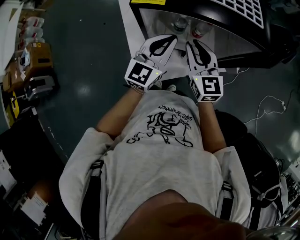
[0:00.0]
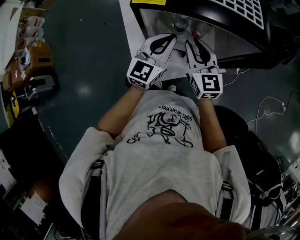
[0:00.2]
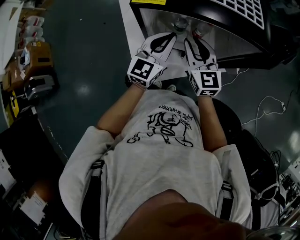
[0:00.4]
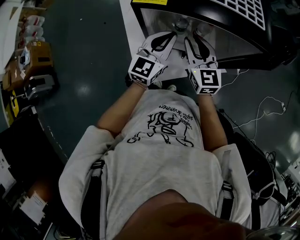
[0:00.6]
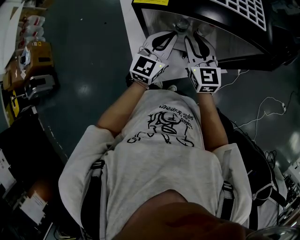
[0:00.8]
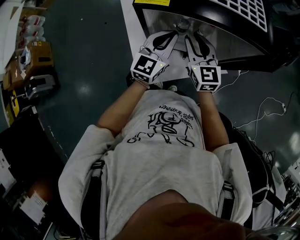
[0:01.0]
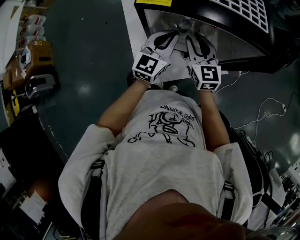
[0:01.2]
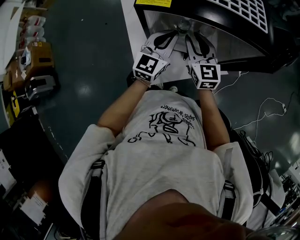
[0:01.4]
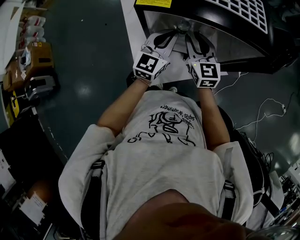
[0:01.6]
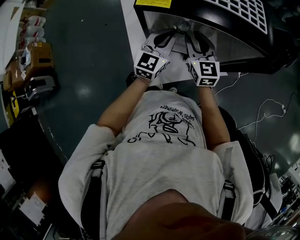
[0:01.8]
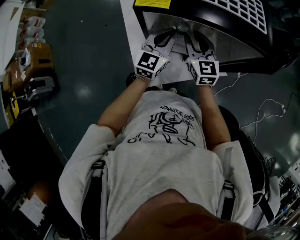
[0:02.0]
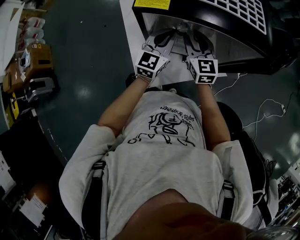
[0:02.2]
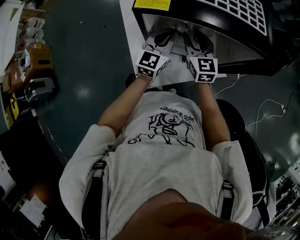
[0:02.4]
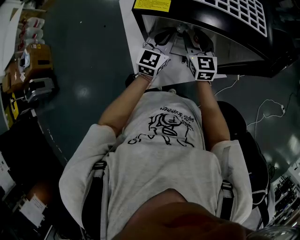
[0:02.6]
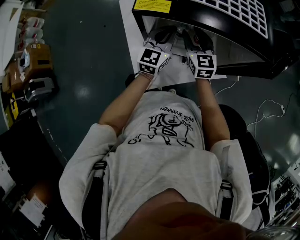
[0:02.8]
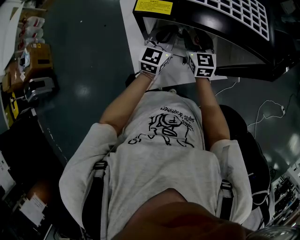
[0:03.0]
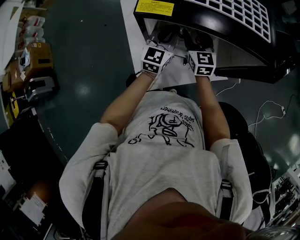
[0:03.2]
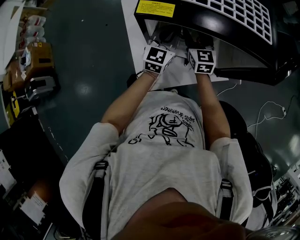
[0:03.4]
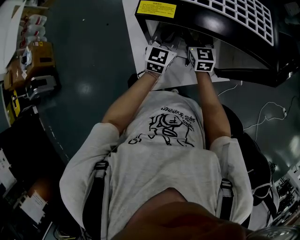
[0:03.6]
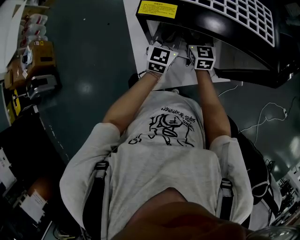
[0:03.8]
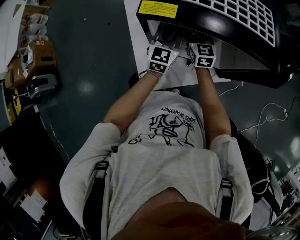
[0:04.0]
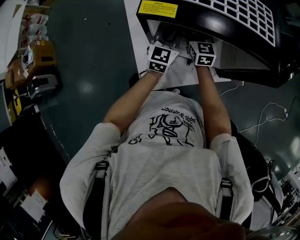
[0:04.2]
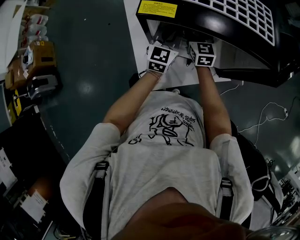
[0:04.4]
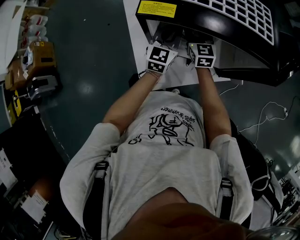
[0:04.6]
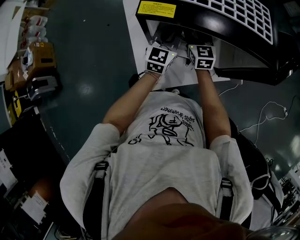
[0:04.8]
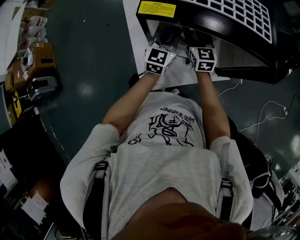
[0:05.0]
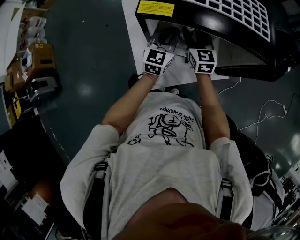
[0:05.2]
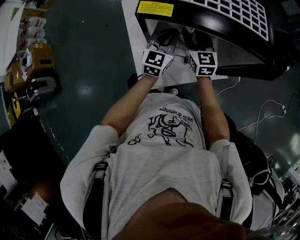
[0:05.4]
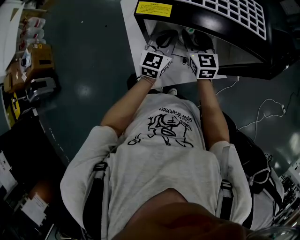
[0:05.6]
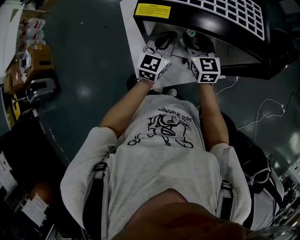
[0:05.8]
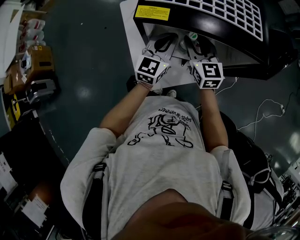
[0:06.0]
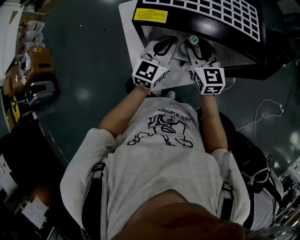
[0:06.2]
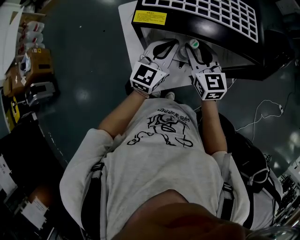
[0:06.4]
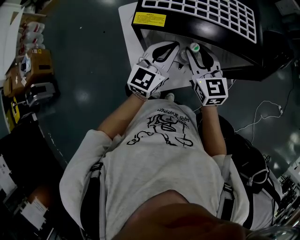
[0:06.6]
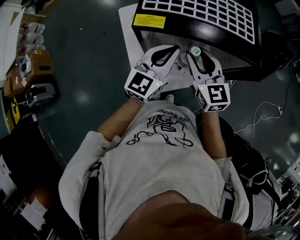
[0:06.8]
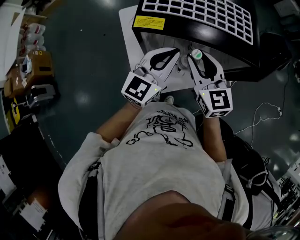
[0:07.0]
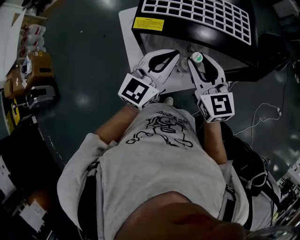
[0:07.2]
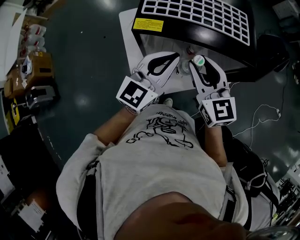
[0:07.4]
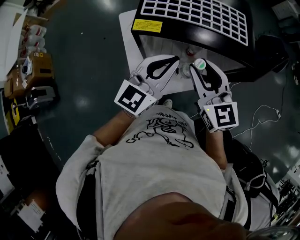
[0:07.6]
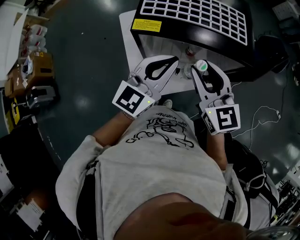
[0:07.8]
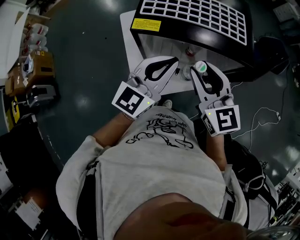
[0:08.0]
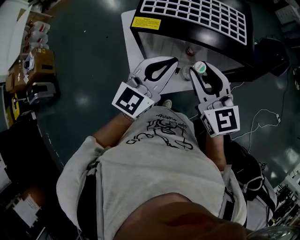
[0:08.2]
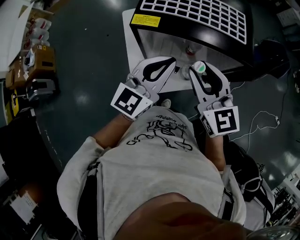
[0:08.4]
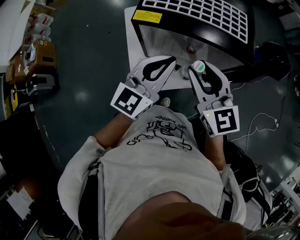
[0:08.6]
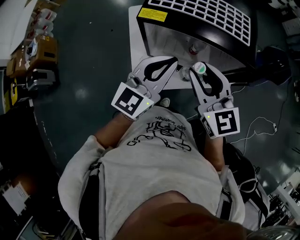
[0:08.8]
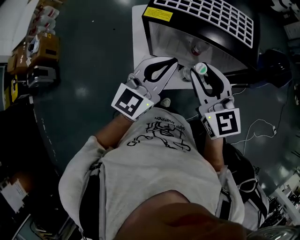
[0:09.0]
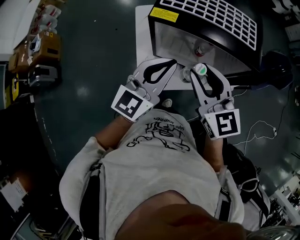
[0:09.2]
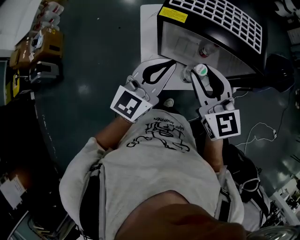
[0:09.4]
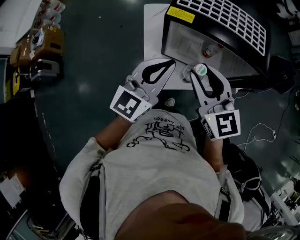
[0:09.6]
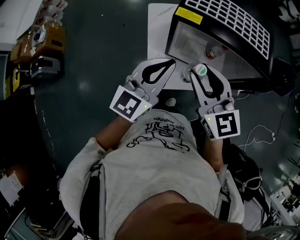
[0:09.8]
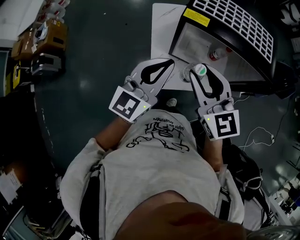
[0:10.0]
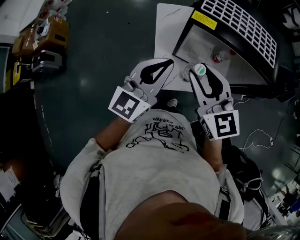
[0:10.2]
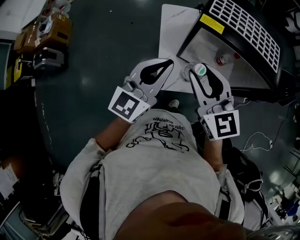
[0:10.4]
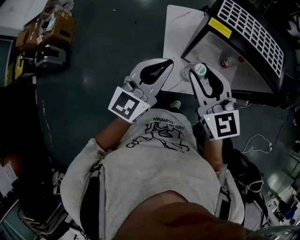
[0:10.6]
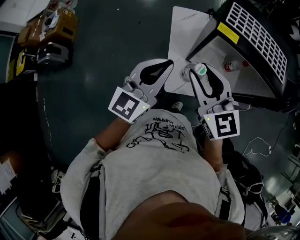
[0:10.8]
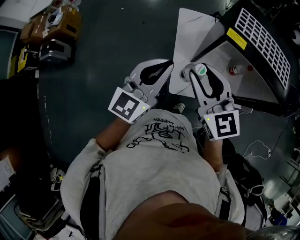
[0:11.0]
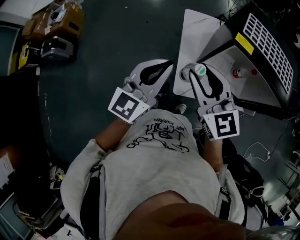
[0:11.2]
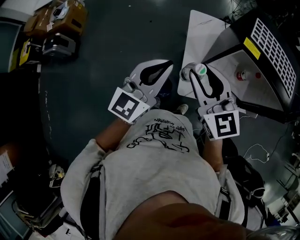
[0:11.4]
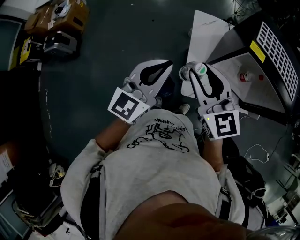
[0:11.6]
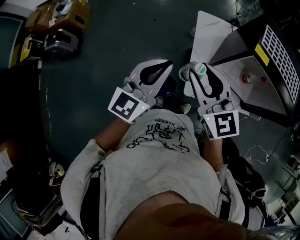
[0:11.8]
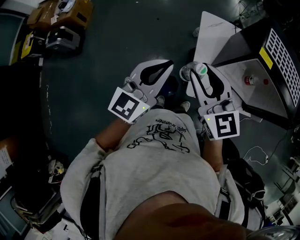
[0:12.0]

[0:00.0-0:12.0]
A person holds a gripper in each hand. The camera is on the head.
0:00.0 to 0:01.6: The right gripper shifts roughly 5 cm forward. The left gripper moves about 5 cm.
0:01.6 to 0:03.0: The grippers both shift forward by about 5 cm.
0:03.0 to 0:04.4: The right gripper shifts by approximately 5 cm.
0:04.4 to 0:06.0: The right gripper shifts roughly 10 cm backward and upward, while the left gripper goes some 5 cm upward.
0:06.0 to 0:07.6: Both grippers travel together upward and backward, roughly 15 cm.
0:07.6 to 0:09.0: The grippers make only small movements.
0:09.0 to 0:10.4: The grippers both shift to the left by roughly 15 cm.
0:10.4 to 0:12.0: Both grippers move to the left, about 20 cm.

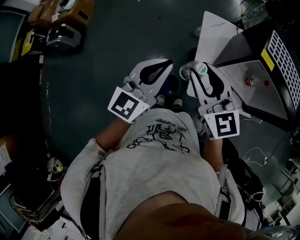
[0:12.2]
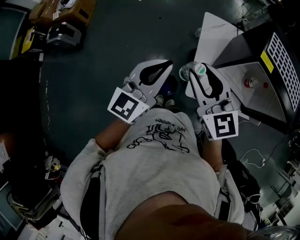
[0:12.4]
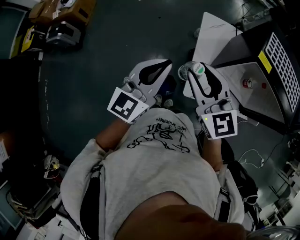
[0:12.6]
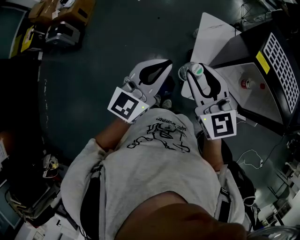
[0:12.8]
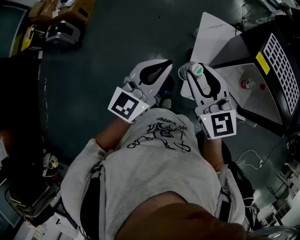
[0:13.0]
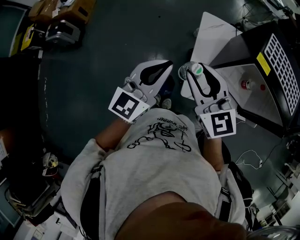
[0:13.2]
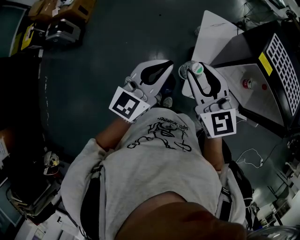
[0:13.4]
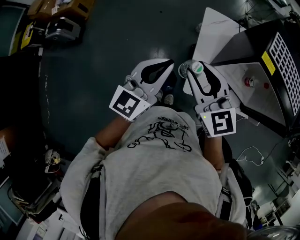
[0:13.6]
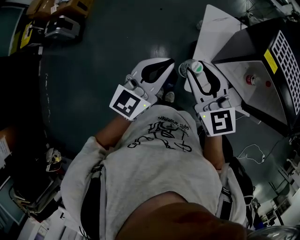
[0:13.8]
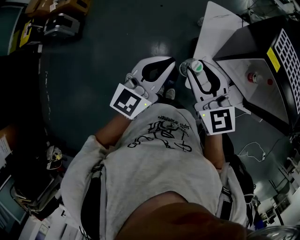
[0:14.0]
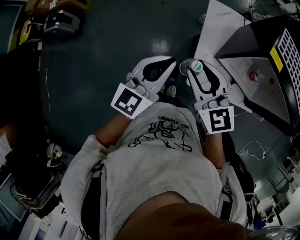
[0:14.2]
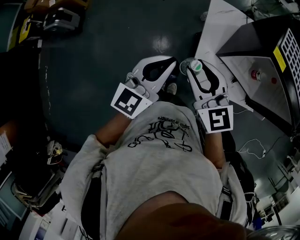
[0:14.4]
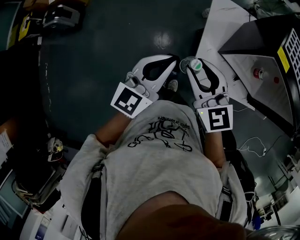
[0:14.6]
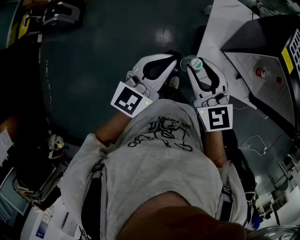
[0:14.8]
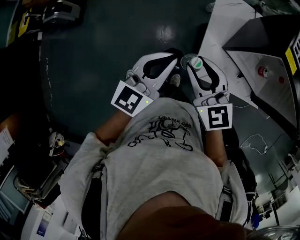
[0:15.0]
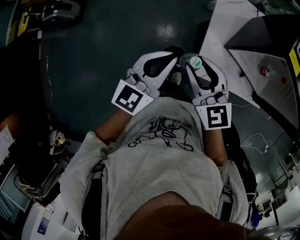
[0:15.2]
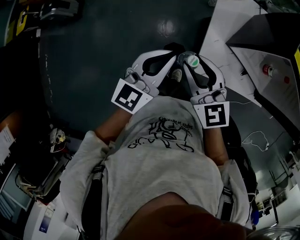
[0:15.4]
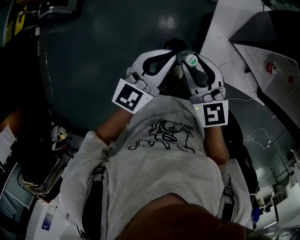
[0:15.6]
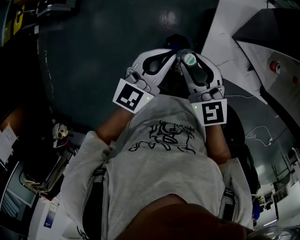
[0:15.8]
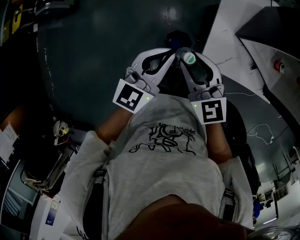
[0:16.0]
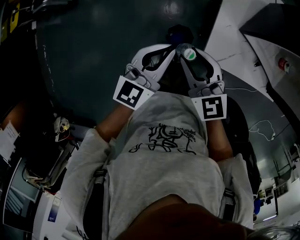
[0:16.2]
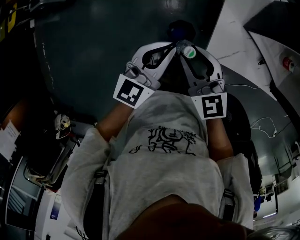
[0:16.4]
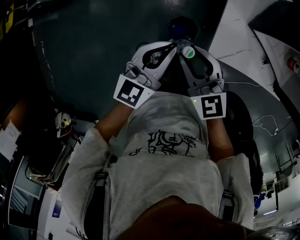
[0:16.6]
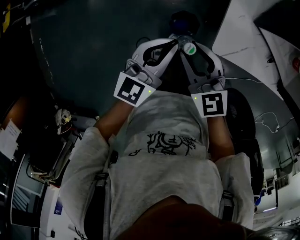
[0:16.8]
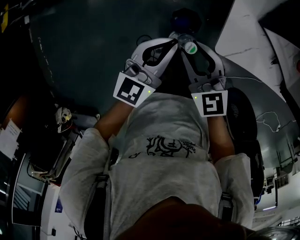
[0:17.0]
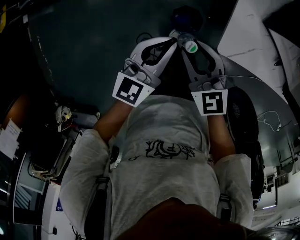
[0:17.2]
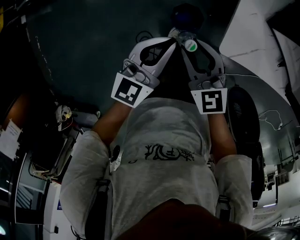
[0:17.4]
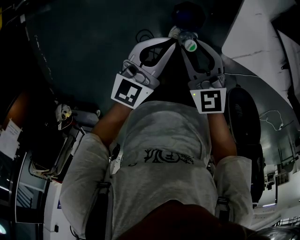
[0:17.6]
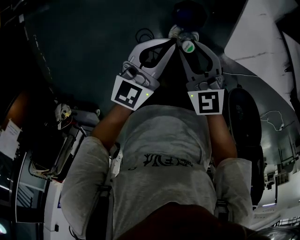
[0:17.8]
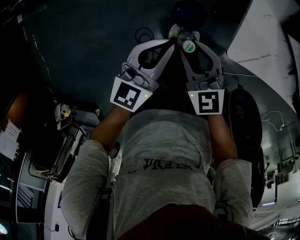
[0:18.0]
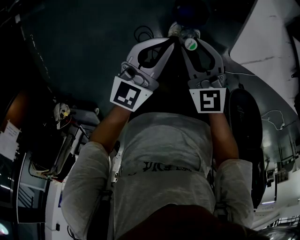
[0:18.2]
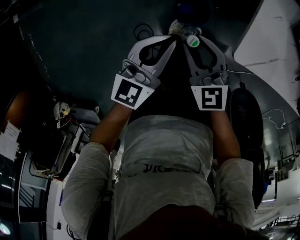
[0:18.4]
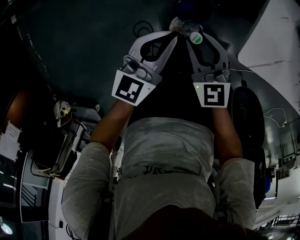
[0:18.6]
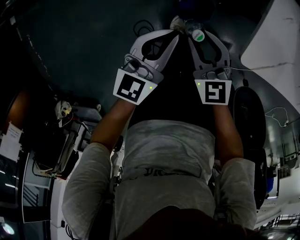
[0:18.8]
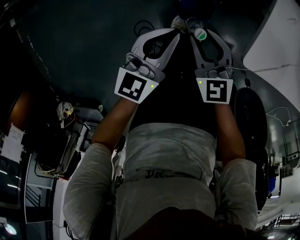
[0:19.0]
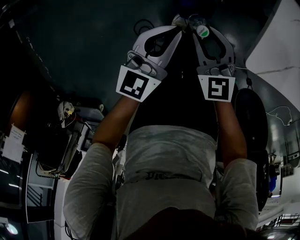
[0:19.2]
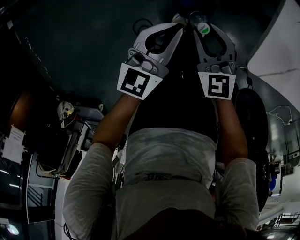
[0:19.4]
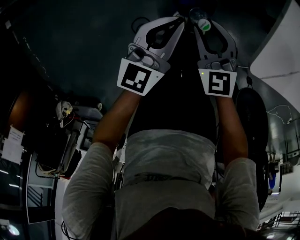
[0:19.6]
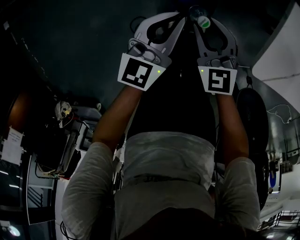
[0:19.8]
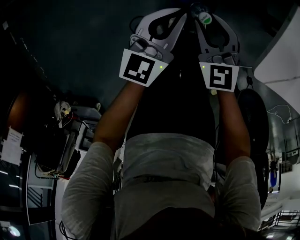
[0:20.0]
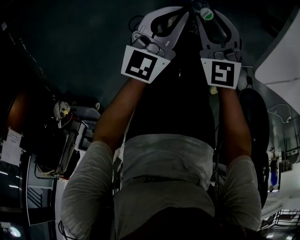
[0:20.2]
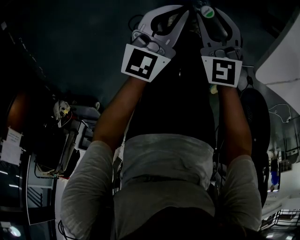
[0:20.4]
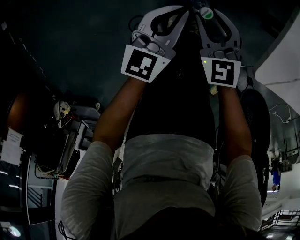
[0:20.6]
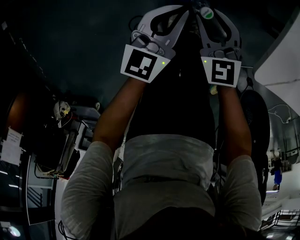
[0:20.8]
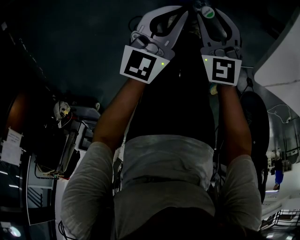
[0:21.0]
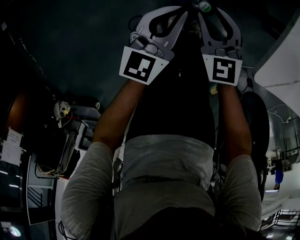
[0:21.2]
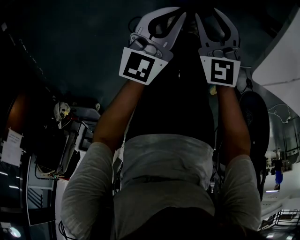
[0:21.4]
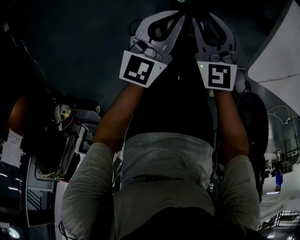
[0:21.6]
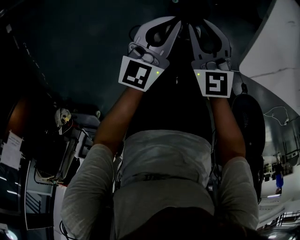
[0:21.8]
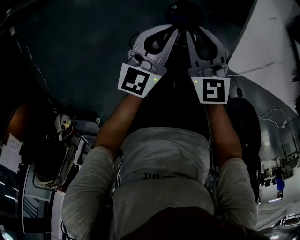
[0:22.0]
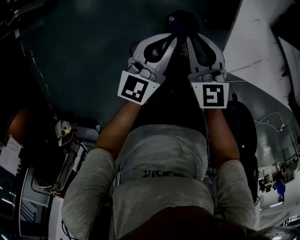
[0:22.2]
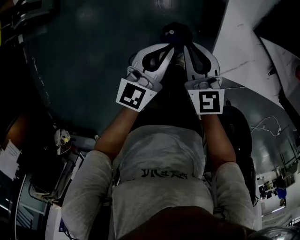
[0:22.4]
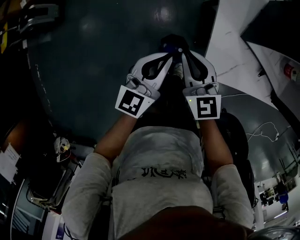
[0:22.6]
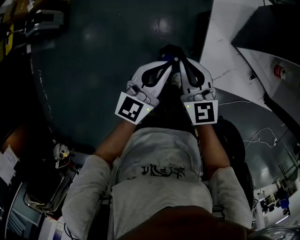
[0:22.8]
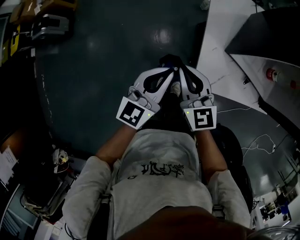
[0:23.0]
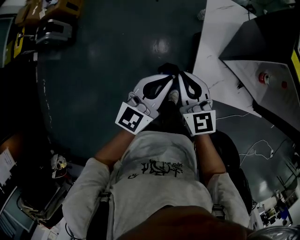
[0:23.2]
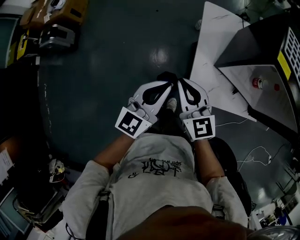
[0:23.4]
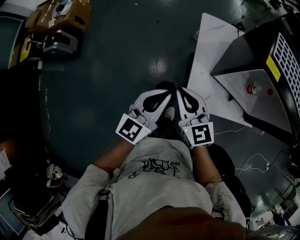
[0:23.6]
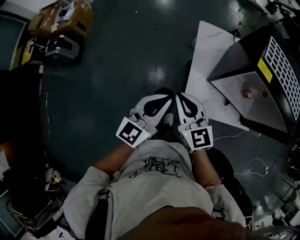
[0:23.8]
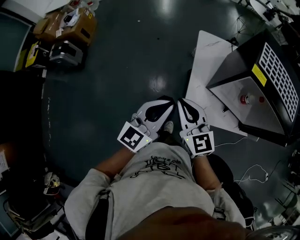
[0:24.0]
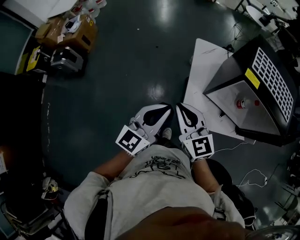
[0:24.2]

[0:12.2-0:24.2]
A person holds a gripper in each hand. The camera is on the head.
0:12.2 to 0:13.8: The grippers make only small movements.
0:13.8 to 0:15.2: The grippers both shift downward by roughly 10 cm.
0:15.2 to 0:16.6: Both grippers travel together downward, about 15 cm.
0:16.6 to 0:18.2: The grippers both shift downward by about 15 cm.
0:18.2 to 0:19.8: Both grippers travel together downward, approximately 15 cm.
0:19.8 to 0:21.2: The grippers make only small movements.
0:21.2 to 0:22.6: The grippers both shift upward by roughly 25 cm. The right gripper closes up.
0:22.6 to 0:24.2: The grippers both shift upward by approximately 25 cm.
